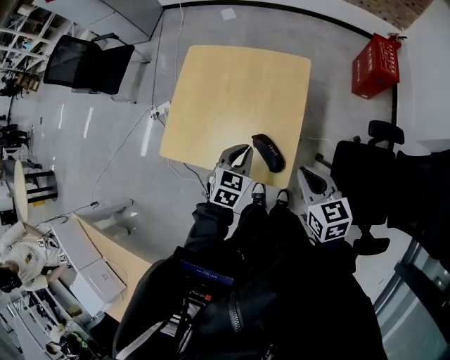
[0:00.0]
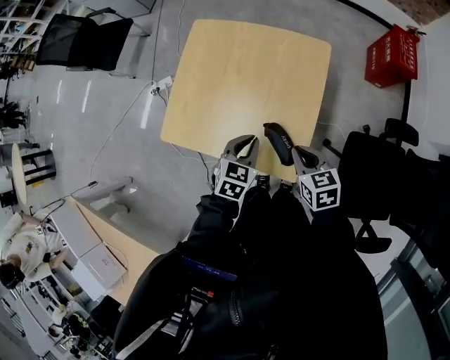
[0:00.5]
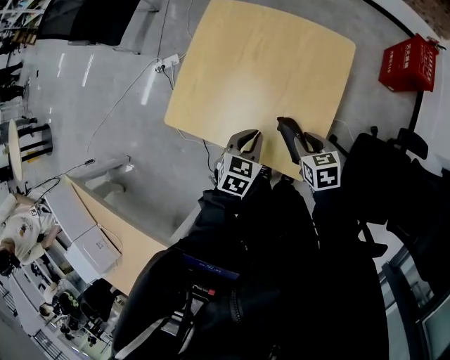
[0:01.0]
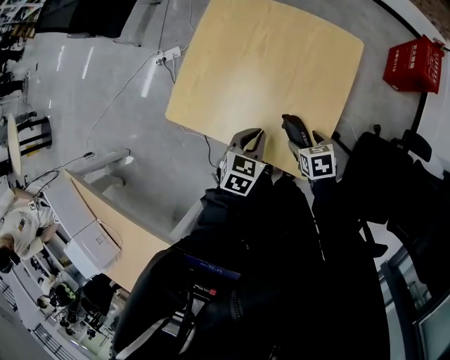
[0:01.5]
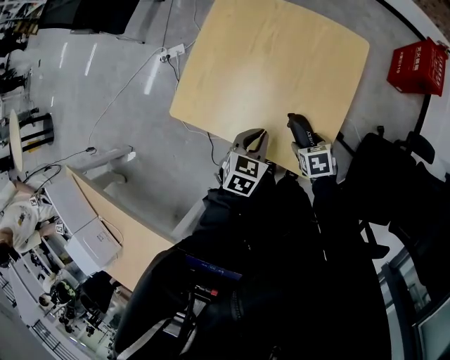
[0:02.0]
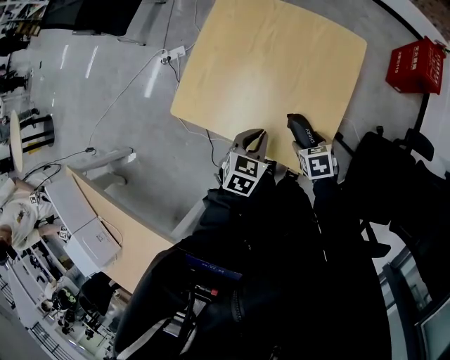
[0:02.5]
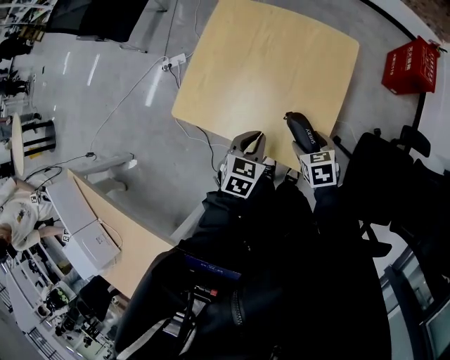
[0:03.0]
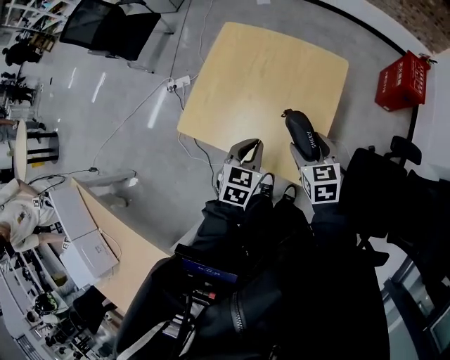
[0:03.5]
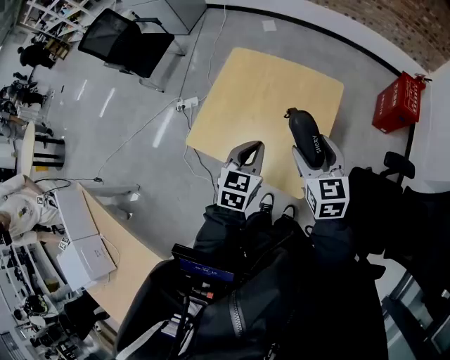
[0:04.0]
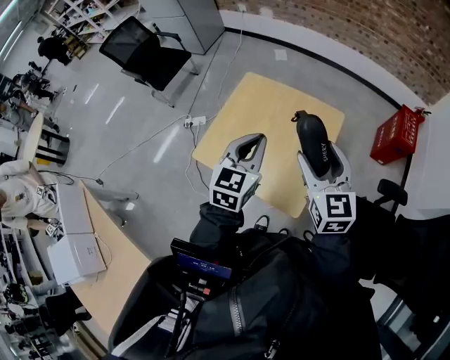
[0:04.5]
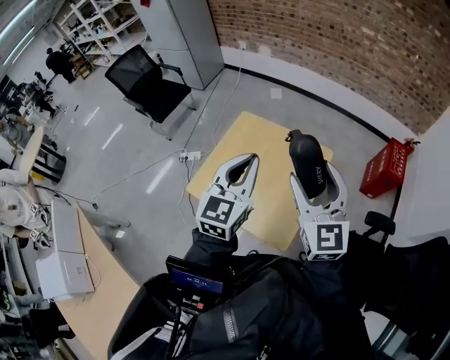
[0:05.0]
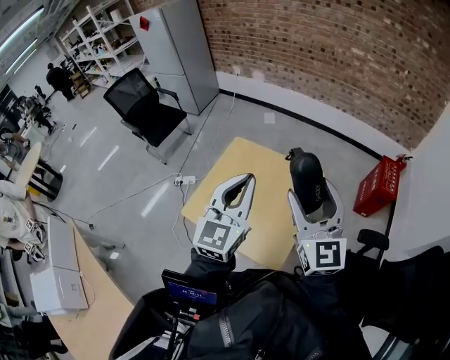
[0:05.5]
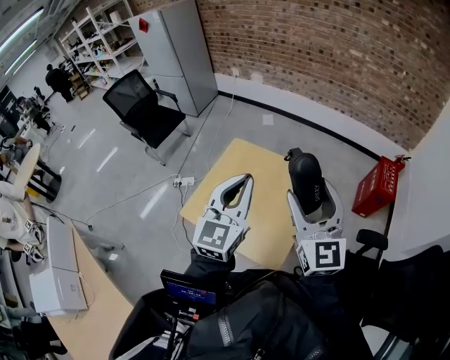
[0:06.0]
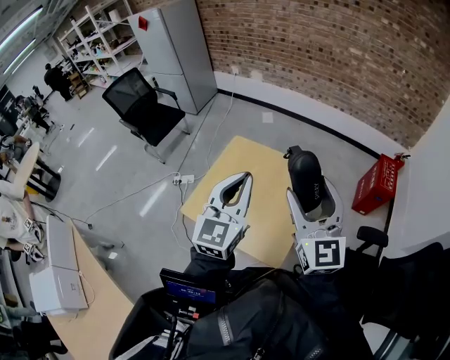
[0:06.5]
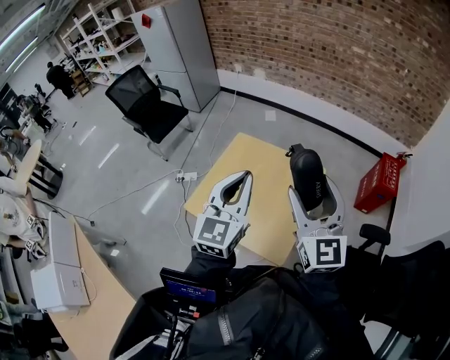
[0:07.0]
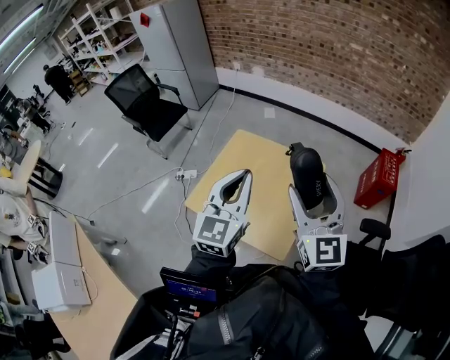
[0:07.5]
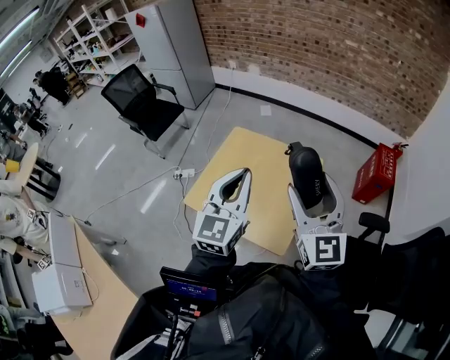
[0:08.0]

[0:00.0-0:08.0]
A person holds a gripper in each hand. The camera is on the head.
0:00.0 to 0:02.0: The left gripper goes about 10 cm downward and to the left; the right gripper travels downward by approximately 25 cm, tilts its fingers some 30 degrees downward, and opens its fingers.
0:02.0 to 0:04.0: The right gripper goes roughly 35 cm upward, and tilts its fingers roughly 40 degrees upward, while the left gripper moves upward, about 20 cm, and rotates some 20 degrees.
0:04.0 to 0:06.0: Both grippers move upward, approximately 25 cm. The right gripper points its fingers about 30 degrees further upward. Meanwhile the left gripper angles its fingers upward, by roughly 30 degrees.
0:06.0 to 0:08.0: The left gripper ends up some 5 cm from where it was. The right gripper travels backward by approximately 5 cm.

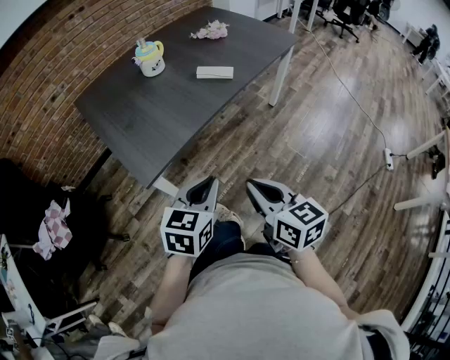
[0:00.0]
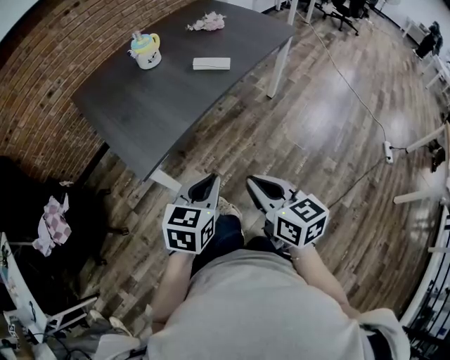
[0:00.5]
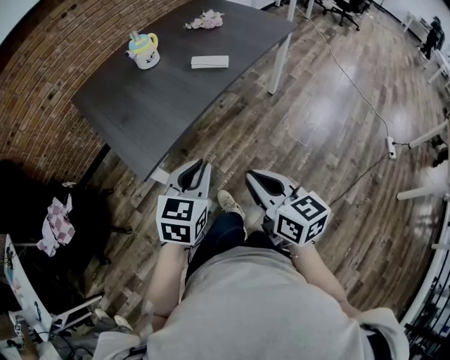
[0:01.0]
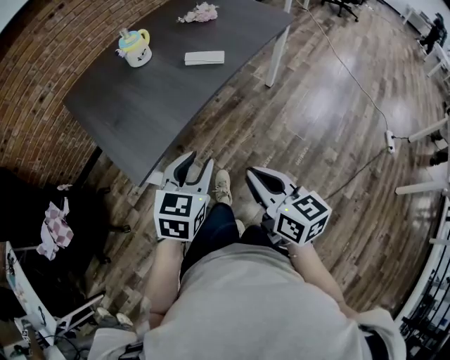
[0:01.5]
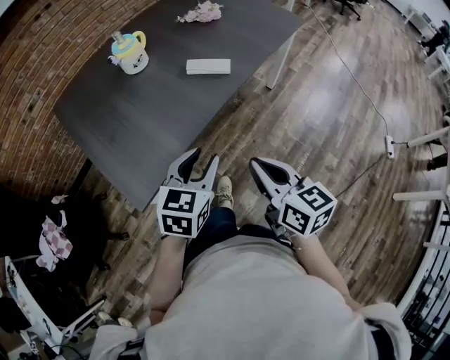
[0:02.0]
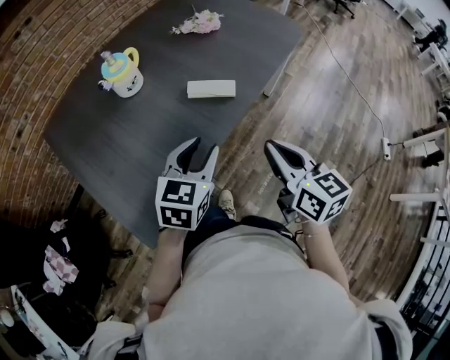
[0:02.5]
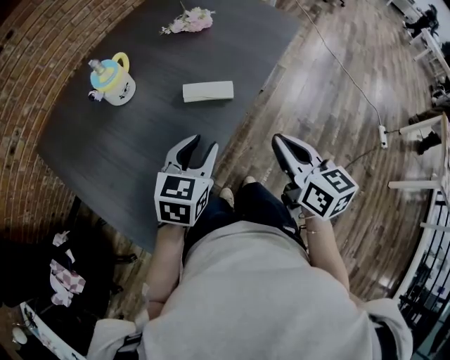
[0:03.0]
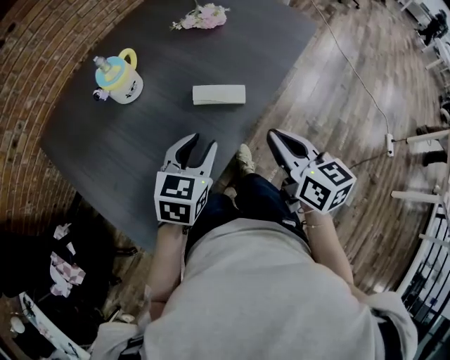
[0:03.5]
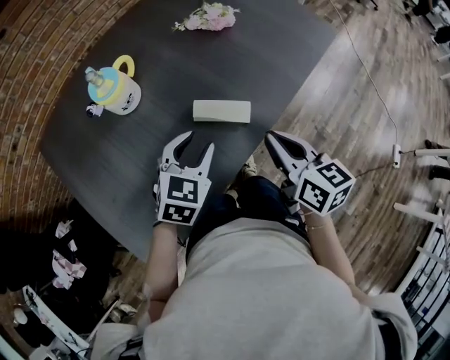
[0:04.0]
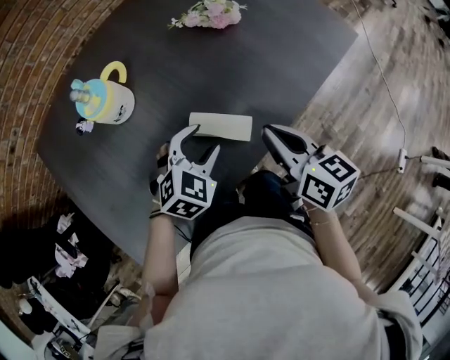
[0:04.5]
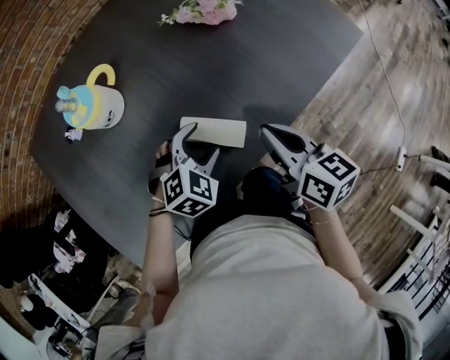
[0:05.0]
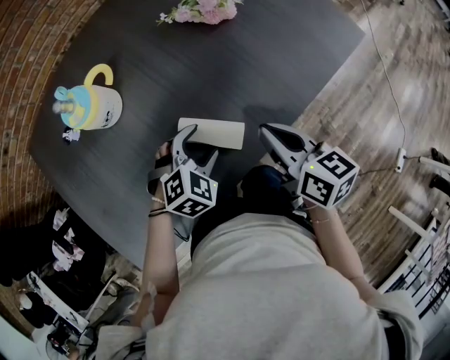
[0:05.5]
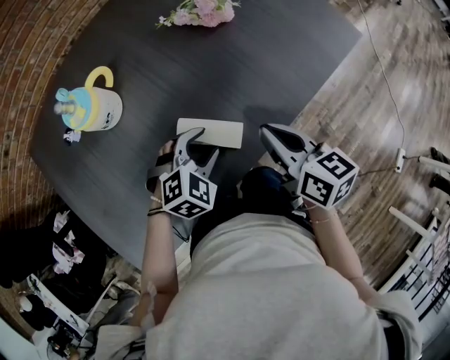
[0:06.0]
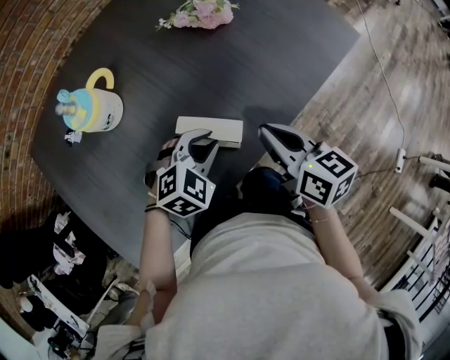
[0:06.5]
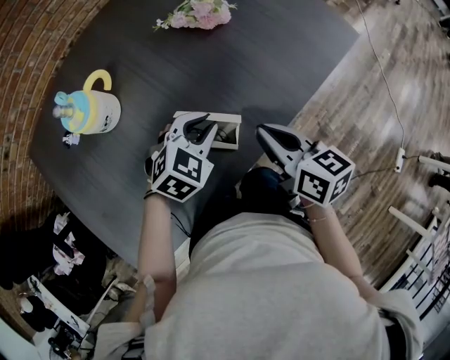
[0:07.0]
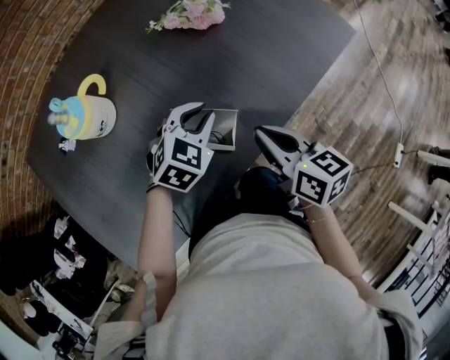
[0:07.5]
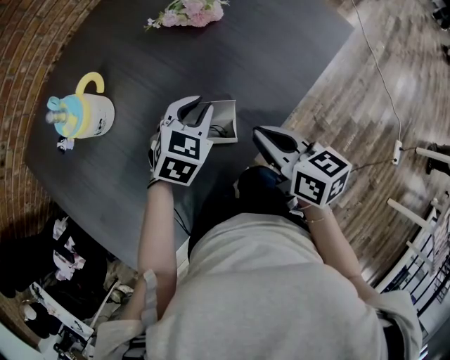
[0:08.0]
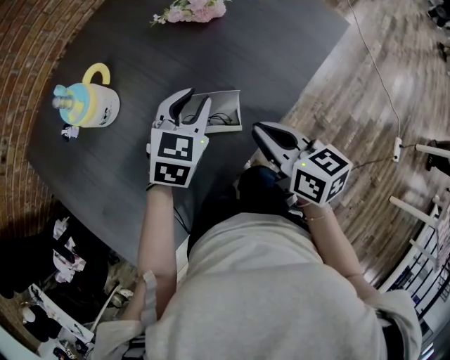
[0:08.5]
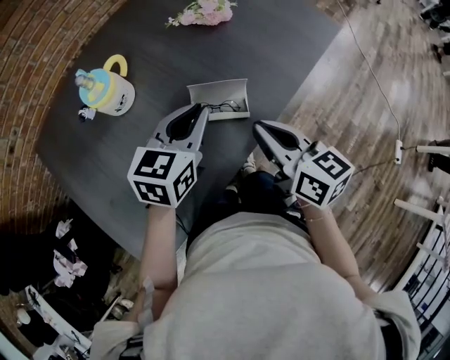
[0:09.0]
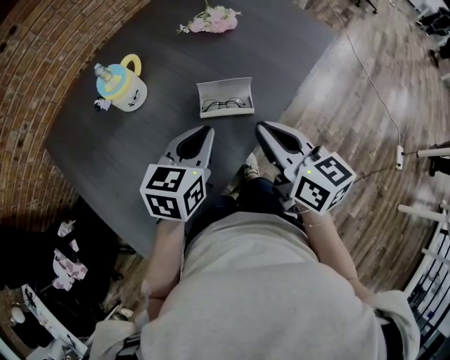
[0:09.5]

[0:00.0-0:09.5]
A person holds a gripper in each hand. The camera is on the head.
0:00.0 to 0:02.0: Both grippers move forward, about 15 cm. The left gripper opens its fingers.
0:02.0 to 0:04.0: The two grippers go approximately 30 cm forward.
0:04.0 to 0:05.5: The right gripper is displaced forward by some 10 cm. The left gripper heads downward, forward and to the right, covering some 15 cm, rotates about 30 degrees, and opens.
0:05.5 to 0:07.5: The left gripper is displaced forward by roughly 10 cm, and closes its fingers.
0:07.5 to 0:09.5: The two grippers go roughly 20 cm backward, upward and to the left. The left gripper turns by approximately 30 degrees; the right gripper changes its angle by approximately 20 degrees.

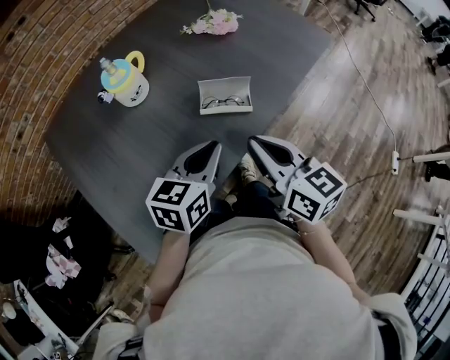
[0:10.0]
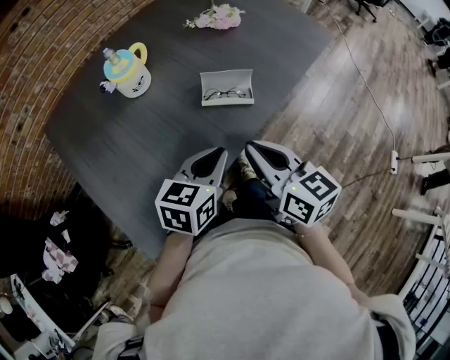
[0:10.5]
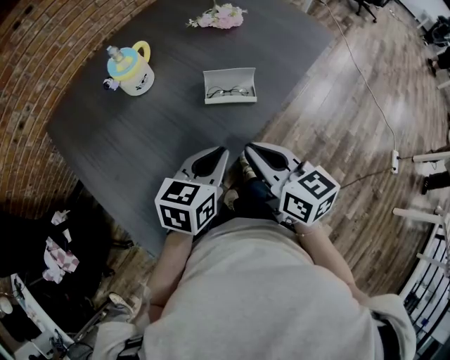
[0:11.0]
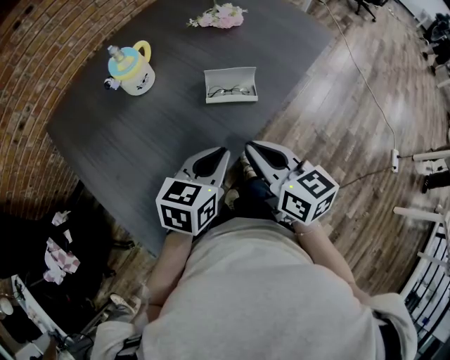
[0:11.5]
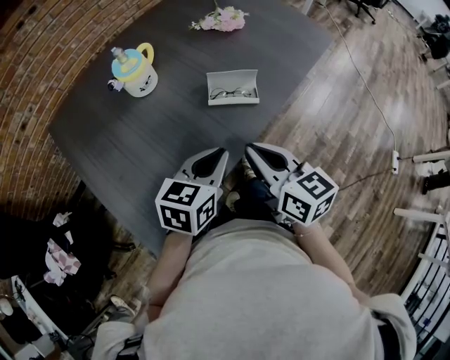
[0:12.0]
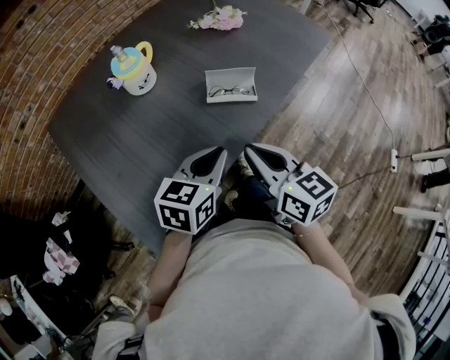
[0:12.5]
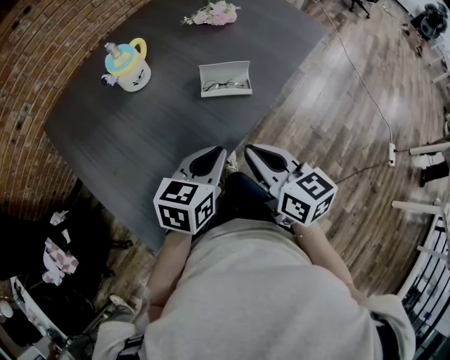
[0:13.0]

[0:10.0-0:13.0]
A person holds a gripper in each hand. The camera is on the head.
0:10.0 to 0:11.5: The right gripper shifts by some 5 cm. The left gripper moves approximately 5 cm.
0:11.5 to 0:13.0: The grippers stay close to where they were, moving slightly.

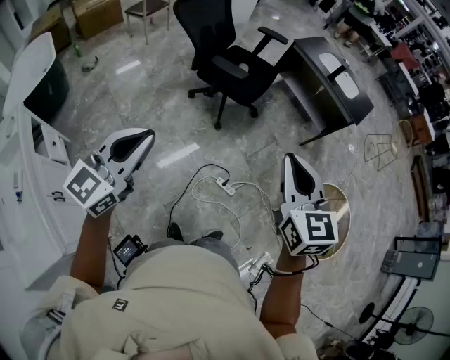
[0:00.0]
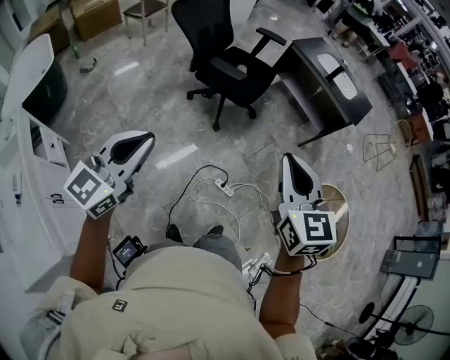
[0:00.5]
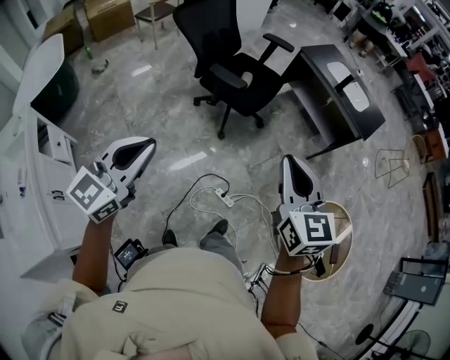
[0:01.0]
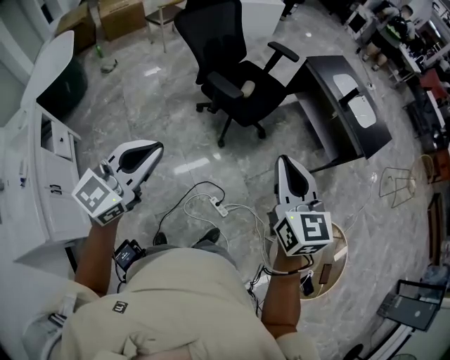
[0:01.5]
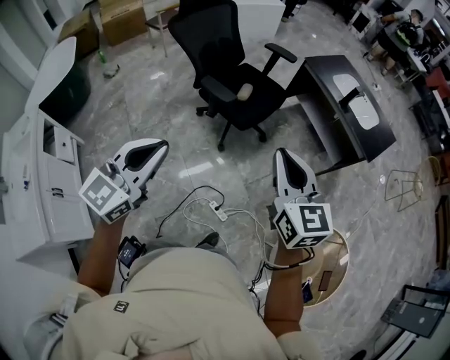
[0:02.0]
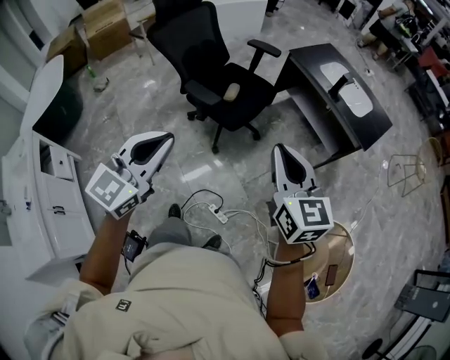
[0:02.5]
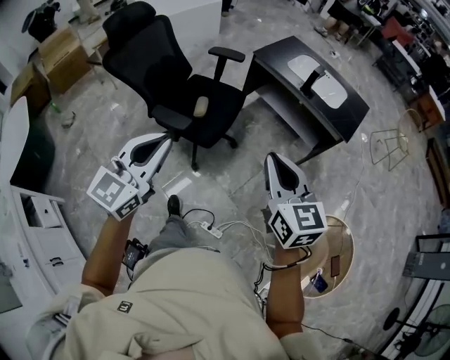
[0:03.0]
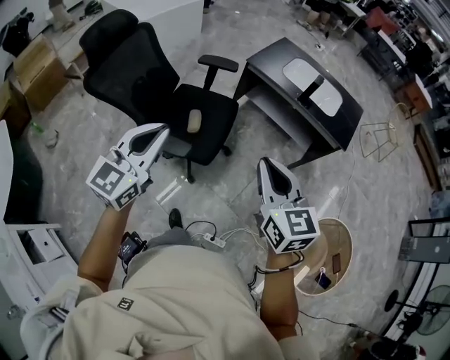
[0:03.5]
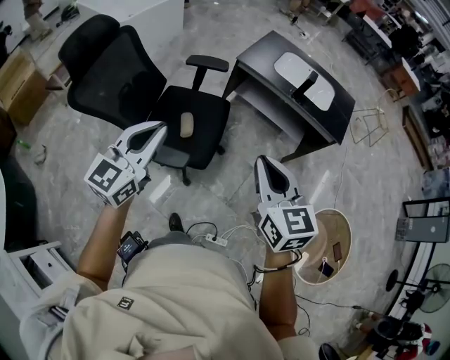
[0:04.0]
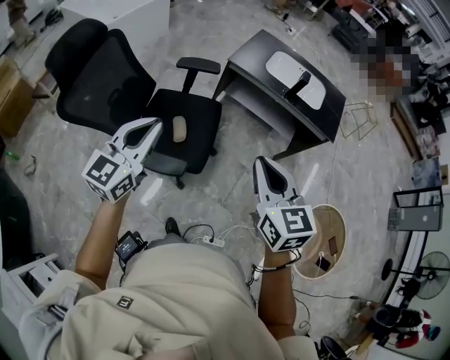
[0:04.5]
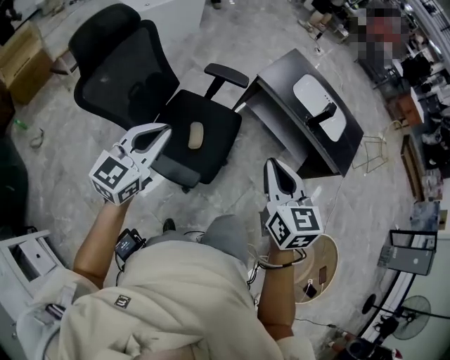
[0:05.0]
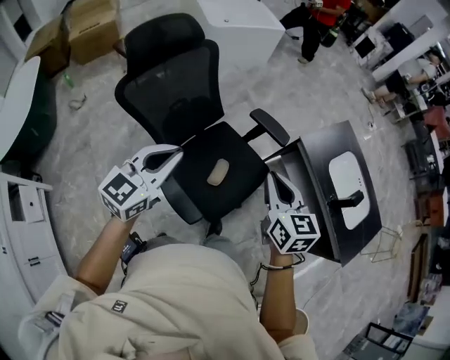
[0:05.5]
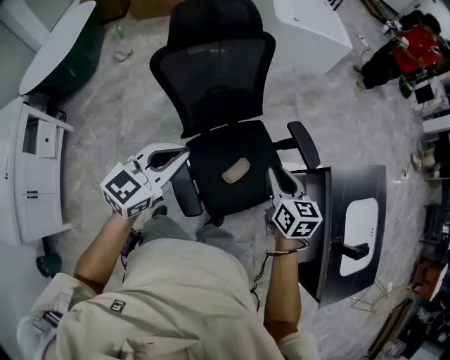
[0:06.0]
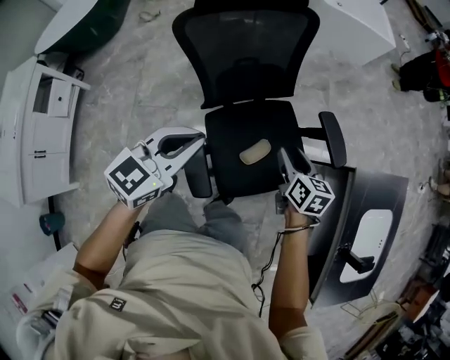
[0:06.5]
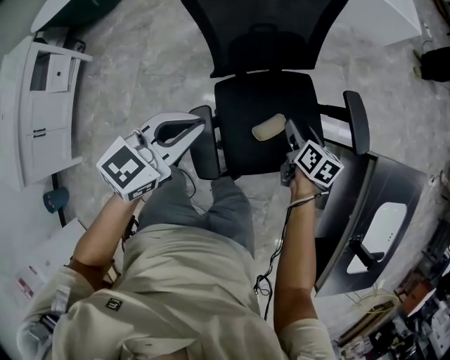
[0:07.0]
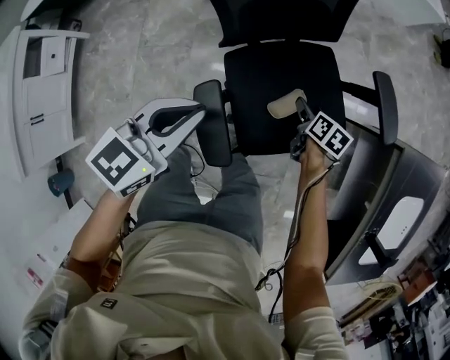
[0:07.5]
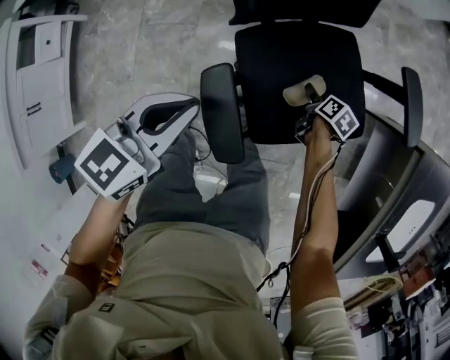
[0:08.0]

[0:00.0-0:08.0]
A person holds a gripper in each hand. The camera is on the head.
0:00.0 to 0:02.0: The right gripper goes about 25 cm forward and to the right. The left gripper is displaced to the right and forward by about 30 cm.
0:02.0 to 0:04.0: The left gripper moves forward, roughly 40 cm, and changes its angle by approximately 20 degrees. Meanwhile the right gripper is displaced forward by roughly 25 cm, and rotates some 30 degrees.
0:04.0 to 0:06.0: The right gripper shifts by roughly 50 cm, and turns by roughly 50 degrees, while the left gripper moves about 25 cm, and swivels roughly 40 degrees.
0:06.0 to 0:08.0: The right gripper is displaced downward by about 50 cm, angles its fingers downward, by roughly 30 degrees, and opens. Meanwhile the left gripper heads downward, covering about 20 cm, and swivels about 20 degrees.
